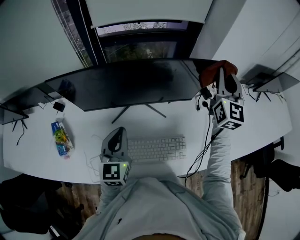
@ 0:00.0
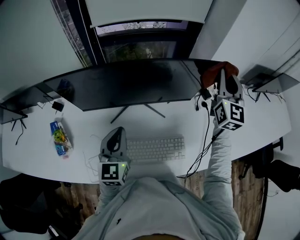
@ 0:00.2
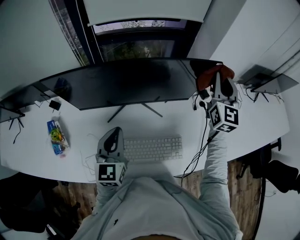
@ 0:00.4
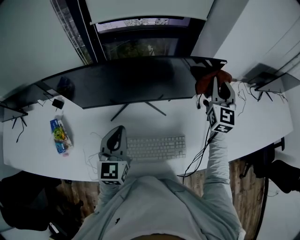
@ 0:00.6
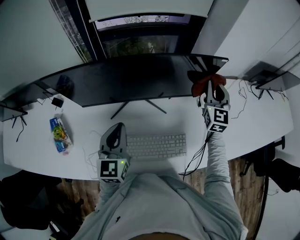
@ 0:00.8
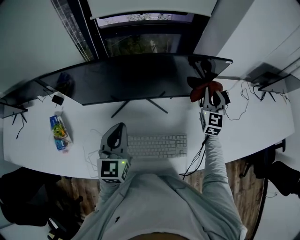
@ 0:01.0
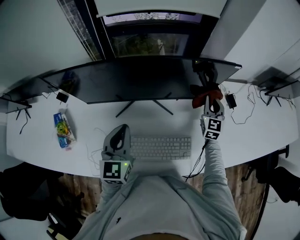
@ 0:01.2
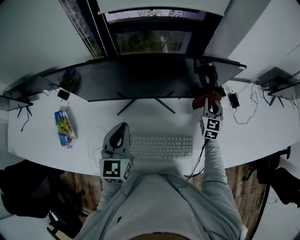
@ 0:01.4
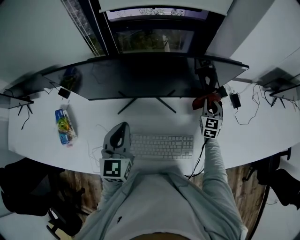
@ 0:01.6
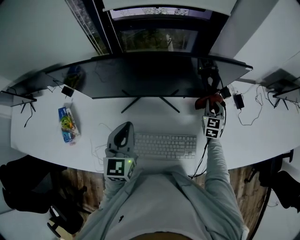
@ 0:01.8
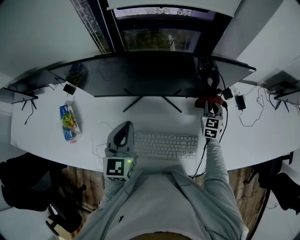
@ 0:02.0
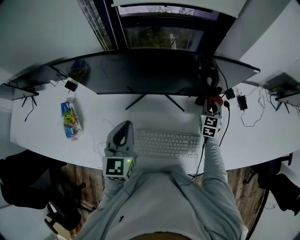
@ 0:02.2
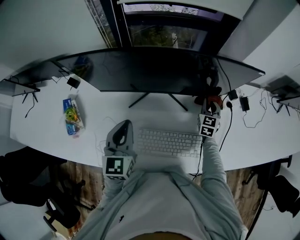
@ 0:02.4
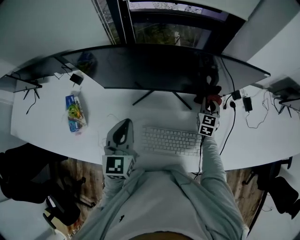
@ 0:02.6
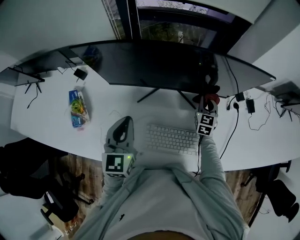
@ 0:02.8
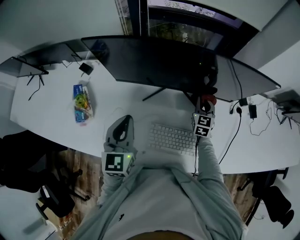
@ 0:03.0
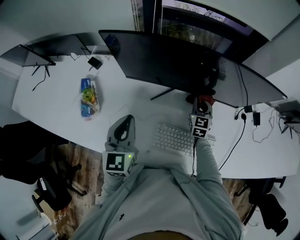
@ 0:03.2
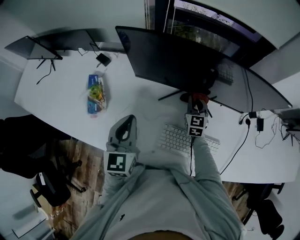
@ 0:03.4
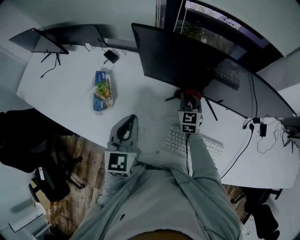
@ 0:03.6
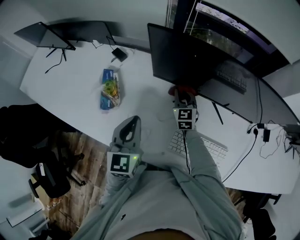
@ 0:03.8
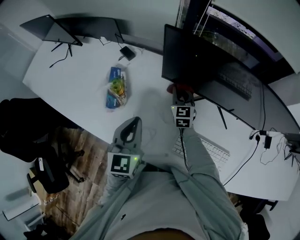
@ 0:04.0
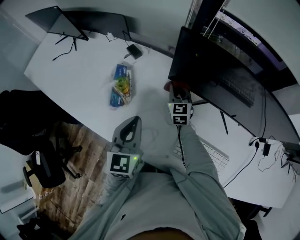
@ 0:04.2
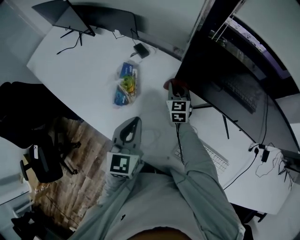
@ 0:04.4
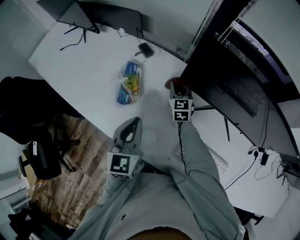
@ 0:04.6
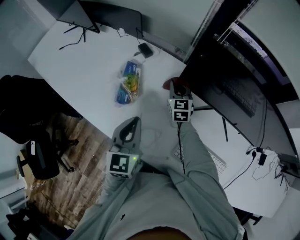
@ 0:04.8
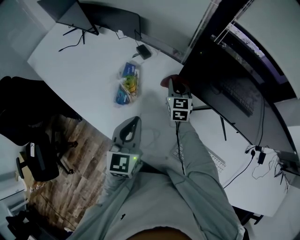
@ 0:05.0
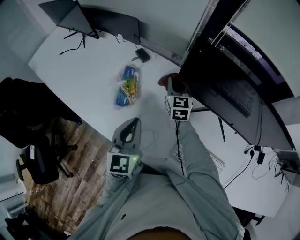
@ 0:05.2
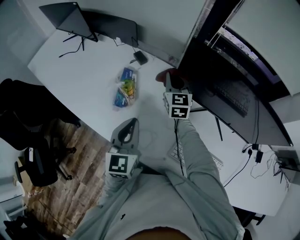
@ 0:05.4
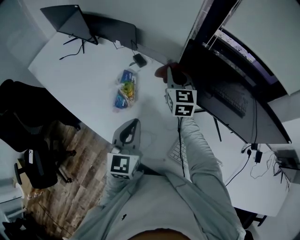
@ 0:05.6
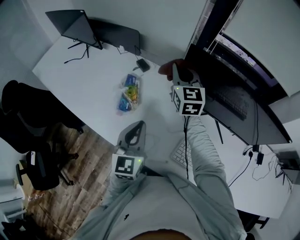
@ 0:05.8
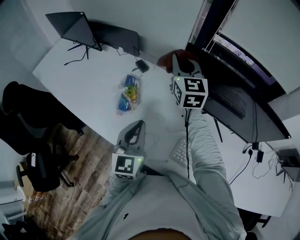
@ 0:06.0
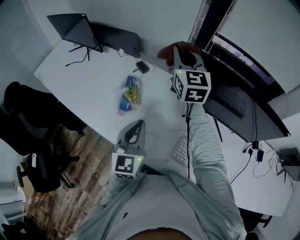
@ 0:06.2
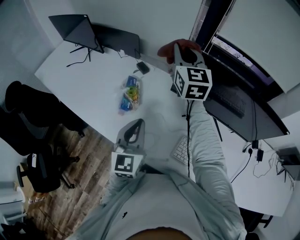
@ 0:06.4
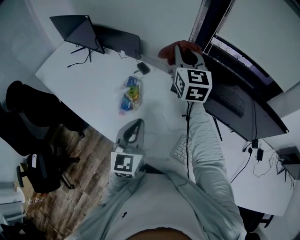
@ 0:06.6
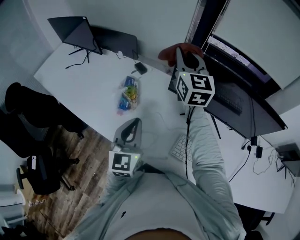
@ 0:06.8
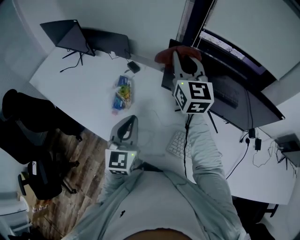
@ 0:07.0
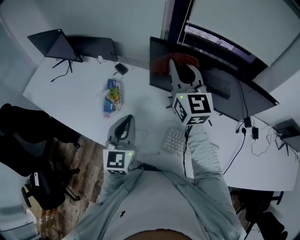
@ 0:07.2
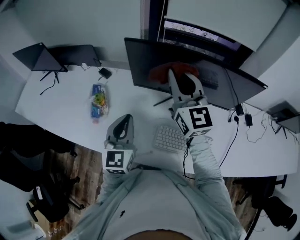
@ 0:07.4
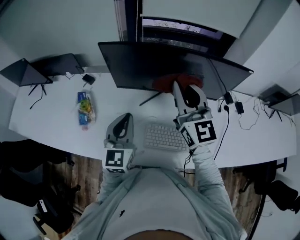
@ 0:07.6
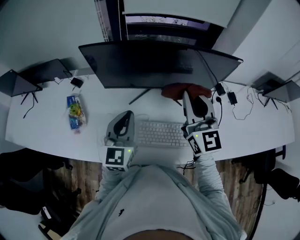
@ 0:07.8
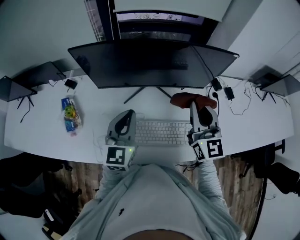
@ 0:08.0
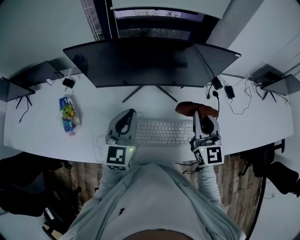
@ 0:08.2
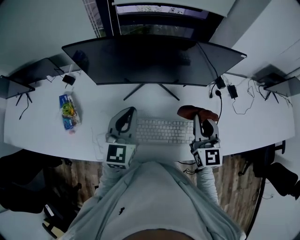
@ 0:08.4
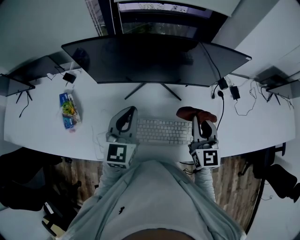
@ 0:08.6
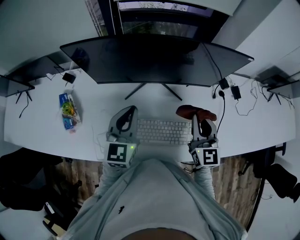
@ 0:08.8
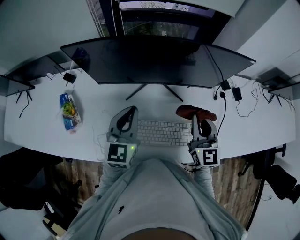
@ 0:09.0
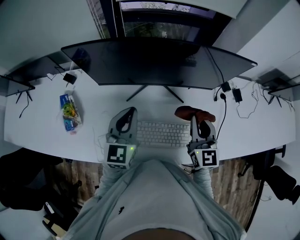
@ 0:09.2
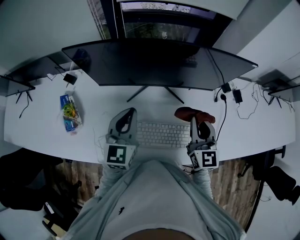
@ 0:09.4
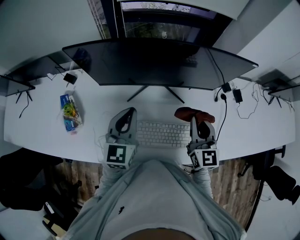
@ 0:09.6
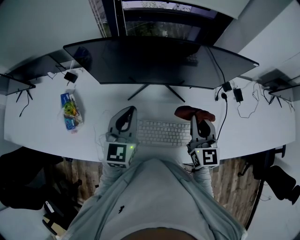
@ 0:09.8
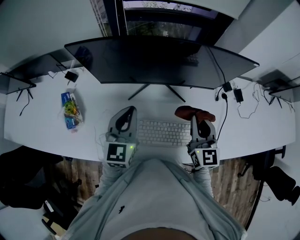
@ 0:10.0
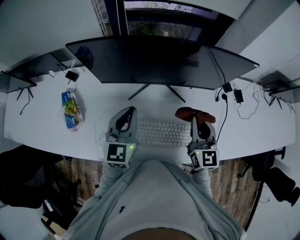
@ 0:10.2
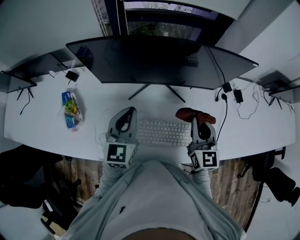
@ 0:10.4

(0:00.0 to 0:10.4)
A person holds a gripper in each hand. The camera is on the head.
0:00.0 - 0:01.4: The right gripper moves downward, about 30 cm, and changes its angle by roughly 30 degrees.
0:01.4 - 0:03.0: The right gripper travels to the left by some 20 cm. The left gripper goes roughly 10 cm to the left.
0:03.0 - 0:04.4: The left gripper shifts by about 20 cm. The right gripper shifts by approximately 40 cm, and changes its angle by some 40 degrees.
0:04.4 - 0:06.0: The left gripper travels upward by some 5 cm. The right gripper heads upward, covering roughly 30 cm, and swivels about 20 degrees.
0:06.0 - 0:07.4: The left gripper is displaced to the right by about 10 cm; the right gripper moves backward and to the right, approximately 25 cm.
0:07.4 - 0:09.0: The left gripper goes about 15 cm to the right and forward. Meanwhile the right gripper is displaced to the right and downward by some 30 cm, and turns by some 30 degrees.
0:09.0 - 0:10.4: The grippers make only small movements.

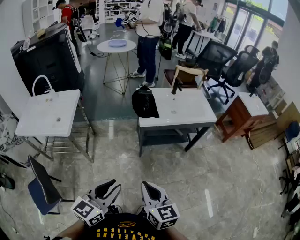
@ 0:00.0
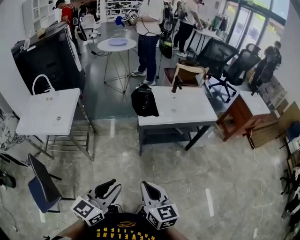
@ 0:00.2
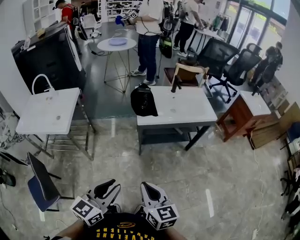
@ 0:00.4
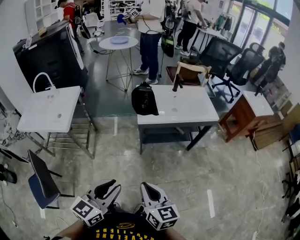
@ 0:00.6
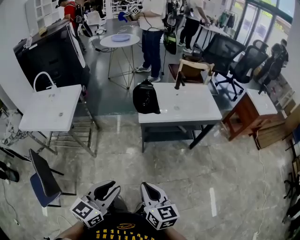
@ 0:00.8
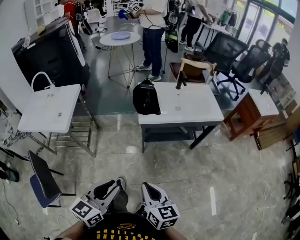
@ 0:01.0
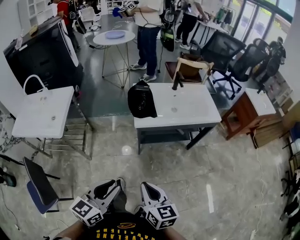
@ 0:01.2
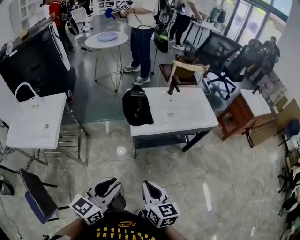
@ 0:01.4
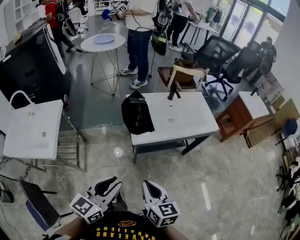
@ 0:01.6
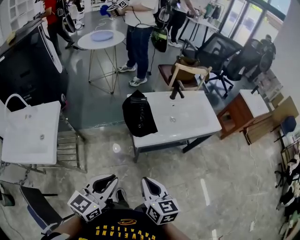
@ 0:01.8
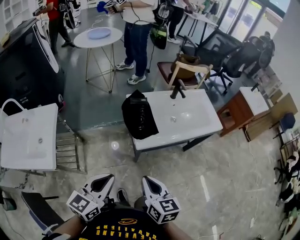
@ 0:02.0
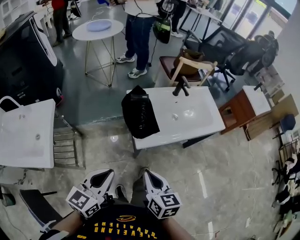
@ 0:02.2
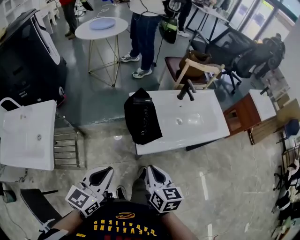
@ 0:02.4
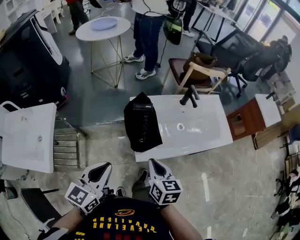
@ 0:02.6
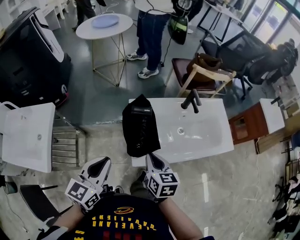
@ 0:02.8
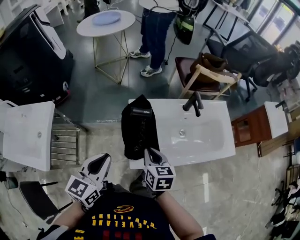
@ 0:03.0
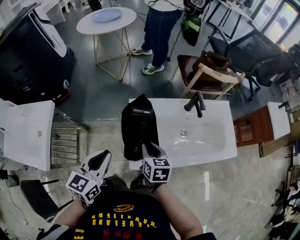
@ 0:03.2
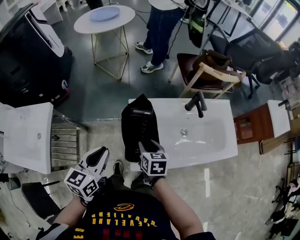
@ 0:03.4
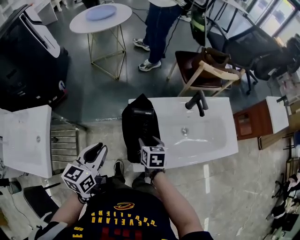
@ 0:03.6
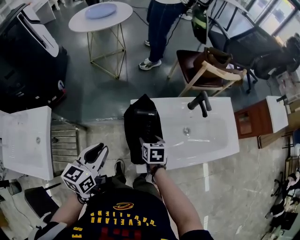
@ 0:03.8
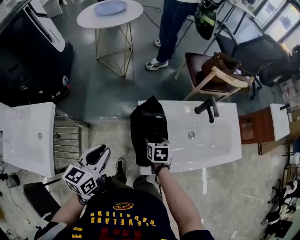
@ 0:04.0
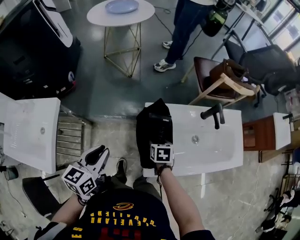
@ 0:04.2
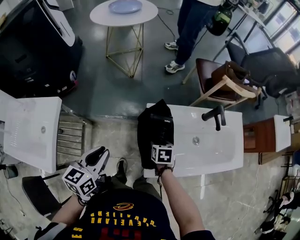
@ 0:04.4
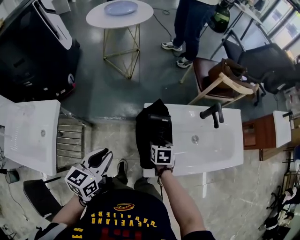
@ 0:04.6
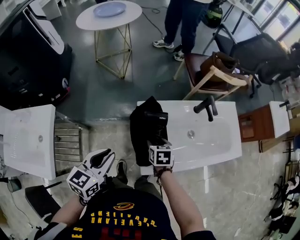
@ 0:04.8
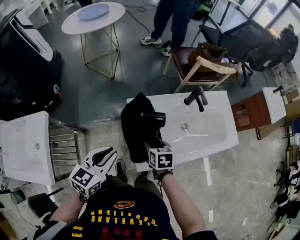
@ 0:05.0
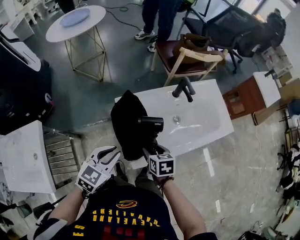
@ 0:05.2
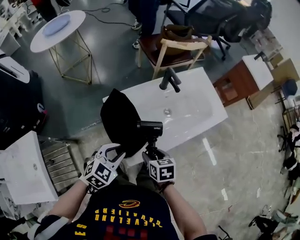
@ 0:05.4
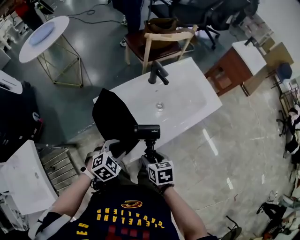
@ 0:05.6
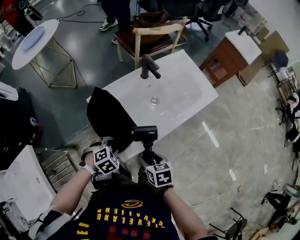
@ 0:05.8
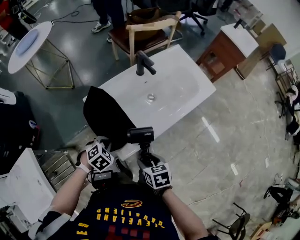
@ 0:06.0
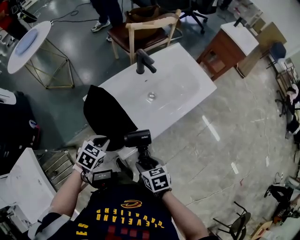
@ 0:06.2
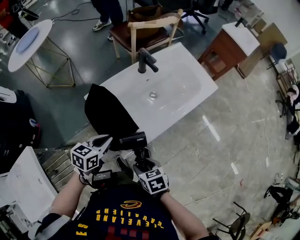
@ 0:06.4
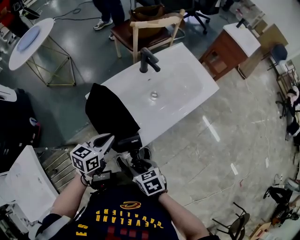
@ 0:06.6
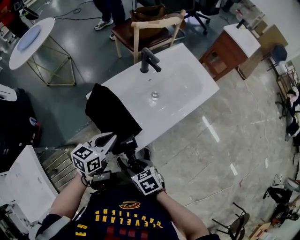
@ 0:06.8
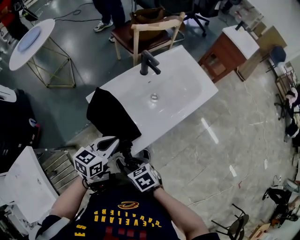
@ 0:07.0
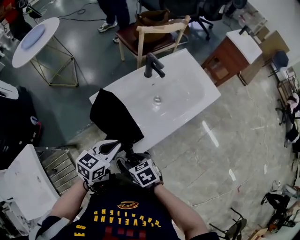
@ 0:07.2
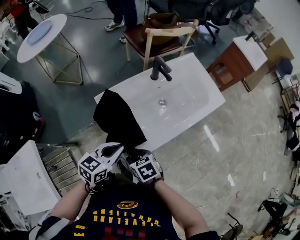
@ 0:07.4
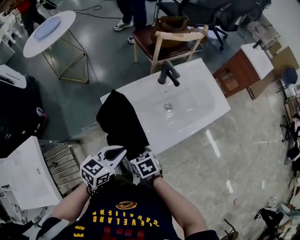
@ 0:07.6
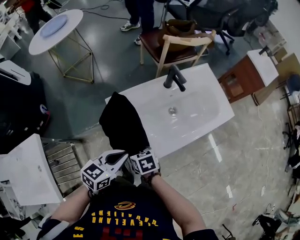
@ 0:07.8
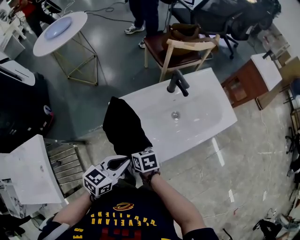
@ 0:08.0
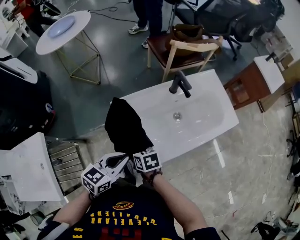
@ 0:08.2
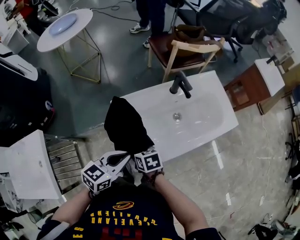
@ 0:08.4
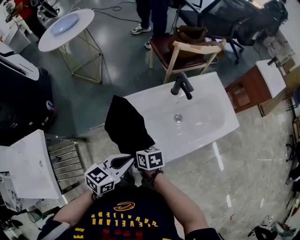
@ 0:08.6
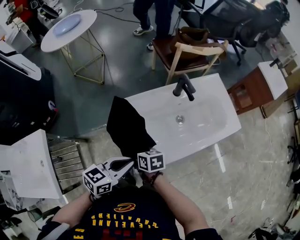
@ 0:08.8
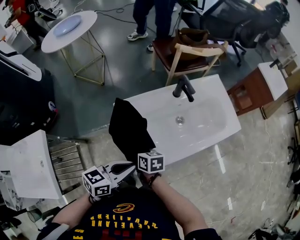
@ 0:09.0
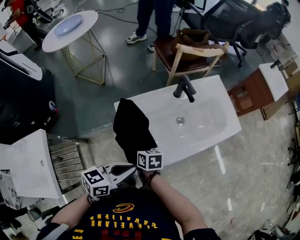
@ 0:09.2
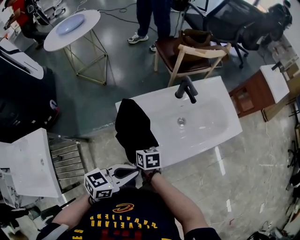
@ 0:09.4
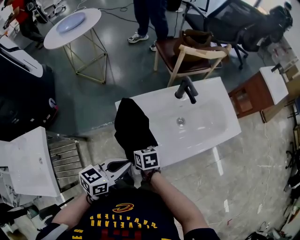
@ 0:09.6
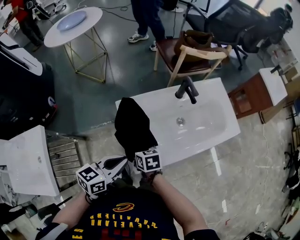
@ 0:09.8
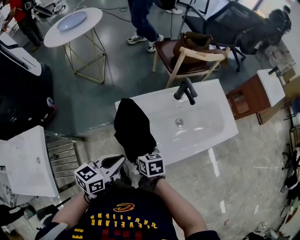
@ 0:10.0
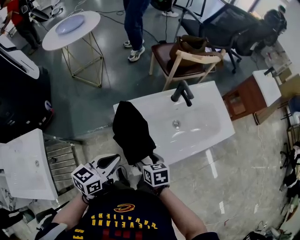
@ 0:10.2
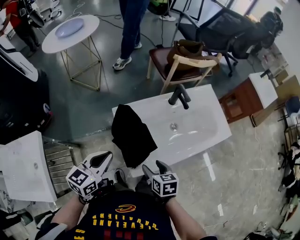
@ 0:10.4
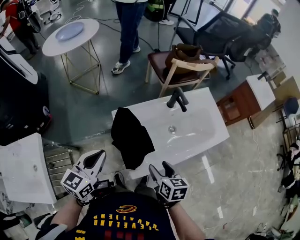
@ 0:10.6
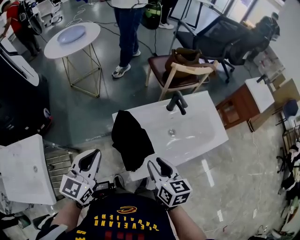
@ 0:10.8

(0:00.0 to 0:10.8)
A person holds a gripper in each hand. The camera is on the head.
0:00.0 - 0:01.6: The grippers both shift forward by some 20 cm.
0:01.6 - 0:03.0: The grippers both shift forward by approximately 35 cm. The left gripper closes up.
0:03.0 - 0:04.6: The right gripper is displaced downward and forward by roughly 15 cm, changes its angle by approximately 30 degrees, and opens up, while the left gripper is displaced to the left, forward and downward by some 15 cm.
0:04.6 - 0:06.2: The left gripper travels to the right and downward by some 20 cm, points its fingers about 30 degrees further downward, and opens, then closes again. The right gripper shifts about 25 cm backward and to the right, and turns by some 20 degrees.
0:06.2 - 0:07.8: The right gripper shifts some 15 cm forward and to the left. Meanwhile the left gripper goes roughly 10 cm upward, and angles its fingers upward, by roughly 30 degrees.
0:09.2 - 0:10.8: The left gripper heads to the left, upward and forward, covering approximately 20 cm, and turns by some 40 degrees. Meanwhile the right gripper heads upward and to the right, covering about 20 cm, and turns by roughly 30 degrees.

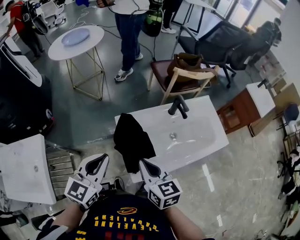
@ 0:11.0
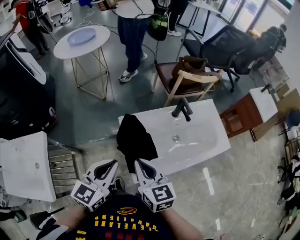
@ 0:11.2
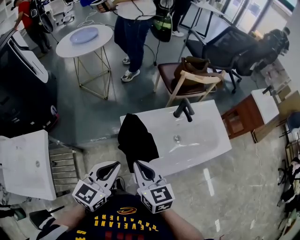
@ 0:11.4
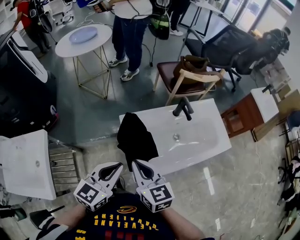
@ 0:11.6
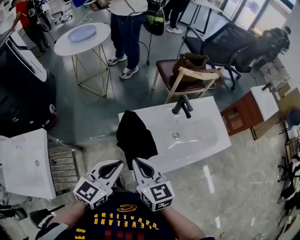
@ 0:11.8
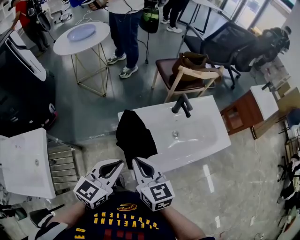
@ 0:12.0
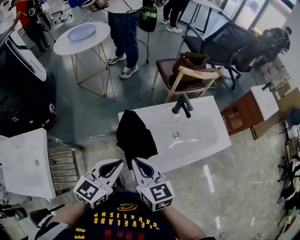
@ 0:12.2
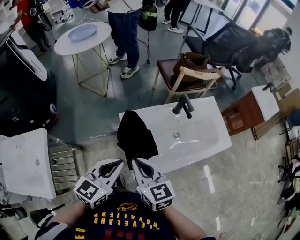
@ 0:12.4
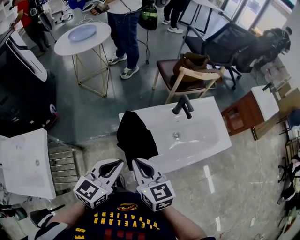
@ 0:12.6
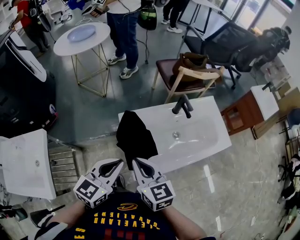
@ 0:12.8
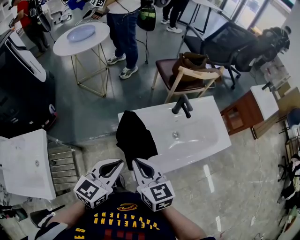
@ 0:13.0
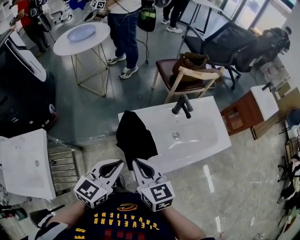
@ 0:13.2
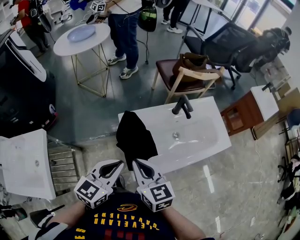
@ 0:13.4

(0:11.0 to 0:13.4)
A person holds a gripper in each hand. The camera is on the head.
0:11.0 - 0:12.2: The left gripper moves roughly 5 cm.
0:12.2 - 0:13.4: Neither gripper changes place.
